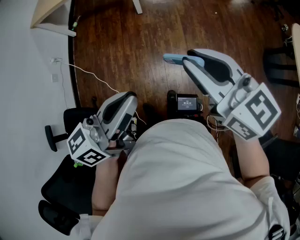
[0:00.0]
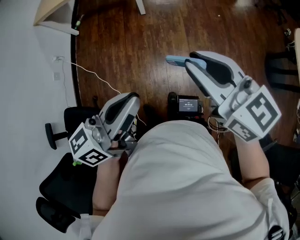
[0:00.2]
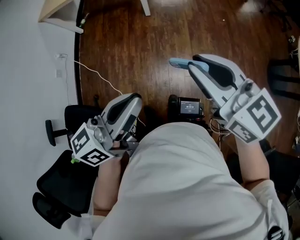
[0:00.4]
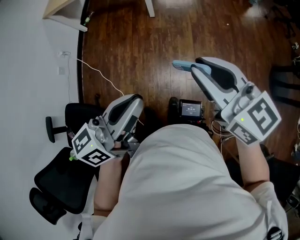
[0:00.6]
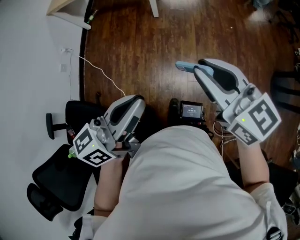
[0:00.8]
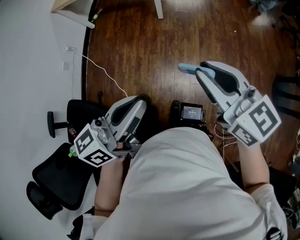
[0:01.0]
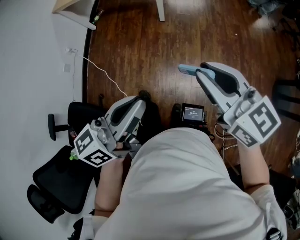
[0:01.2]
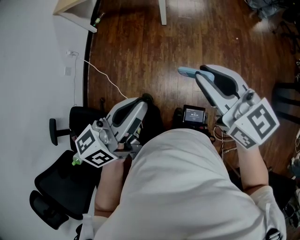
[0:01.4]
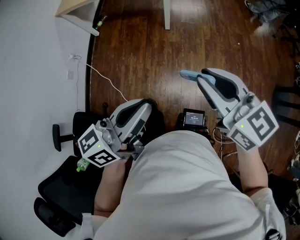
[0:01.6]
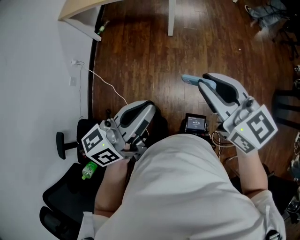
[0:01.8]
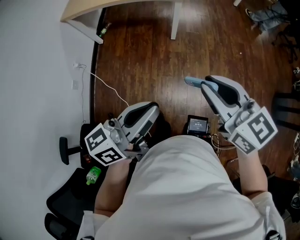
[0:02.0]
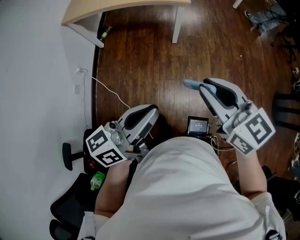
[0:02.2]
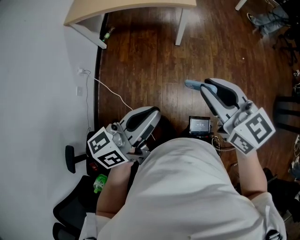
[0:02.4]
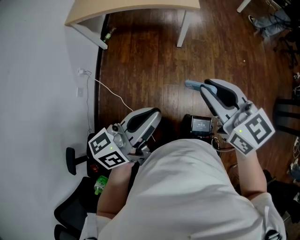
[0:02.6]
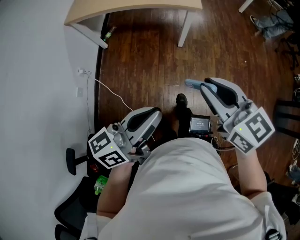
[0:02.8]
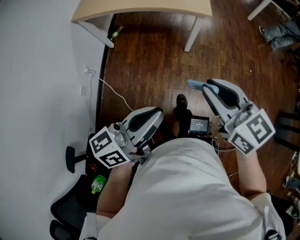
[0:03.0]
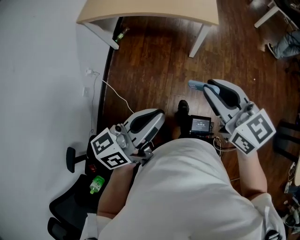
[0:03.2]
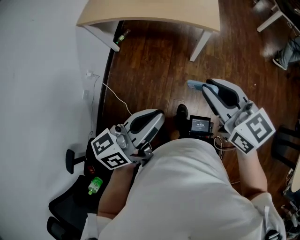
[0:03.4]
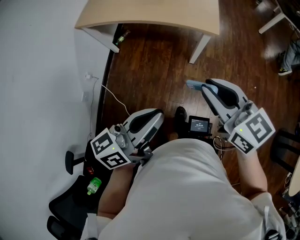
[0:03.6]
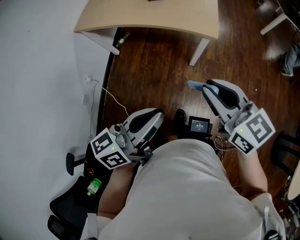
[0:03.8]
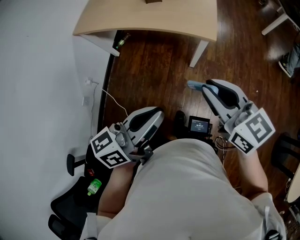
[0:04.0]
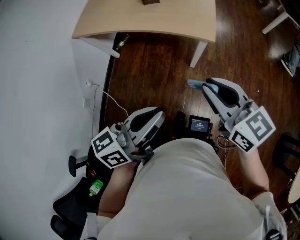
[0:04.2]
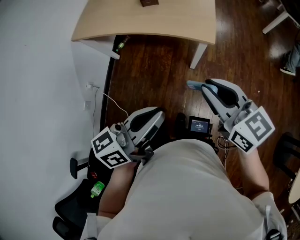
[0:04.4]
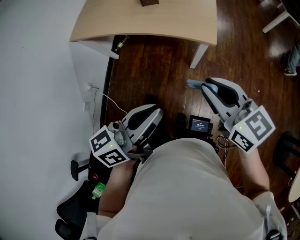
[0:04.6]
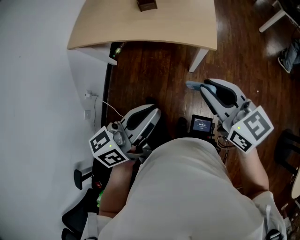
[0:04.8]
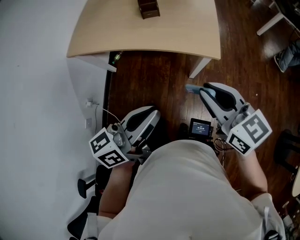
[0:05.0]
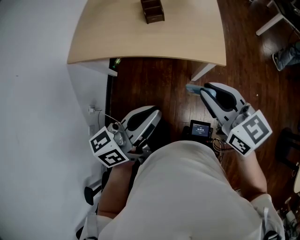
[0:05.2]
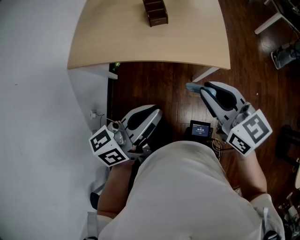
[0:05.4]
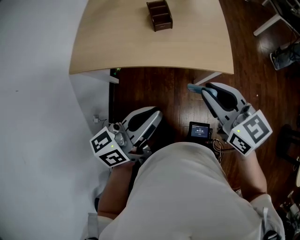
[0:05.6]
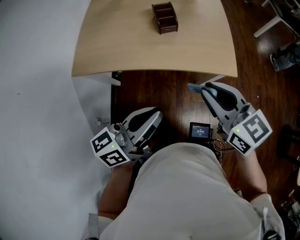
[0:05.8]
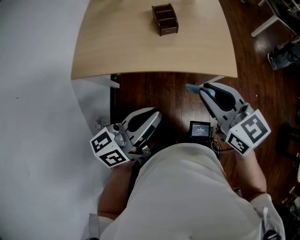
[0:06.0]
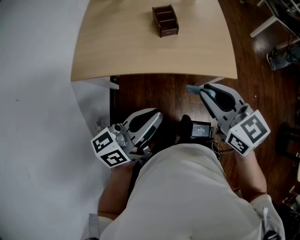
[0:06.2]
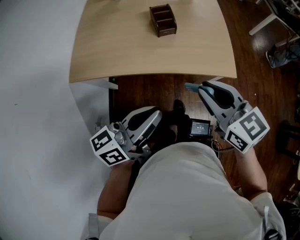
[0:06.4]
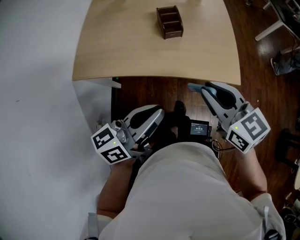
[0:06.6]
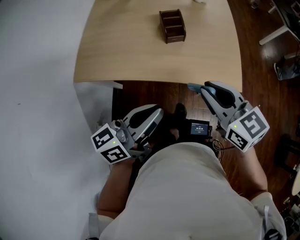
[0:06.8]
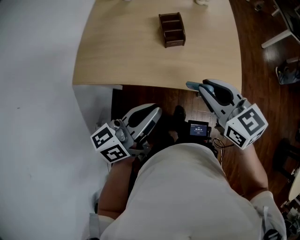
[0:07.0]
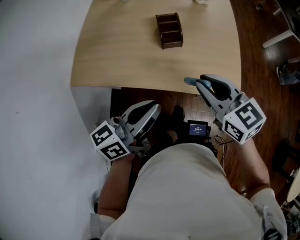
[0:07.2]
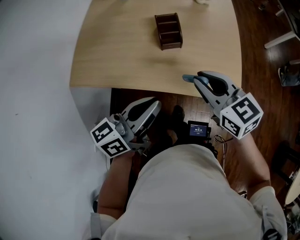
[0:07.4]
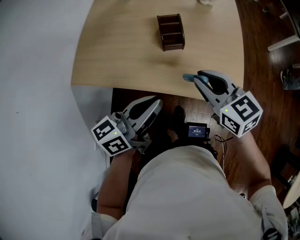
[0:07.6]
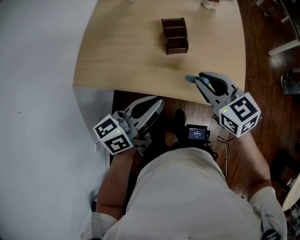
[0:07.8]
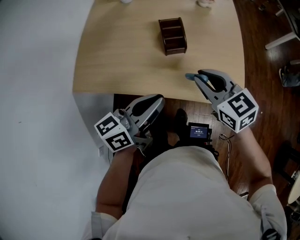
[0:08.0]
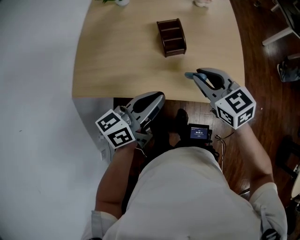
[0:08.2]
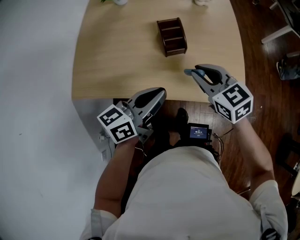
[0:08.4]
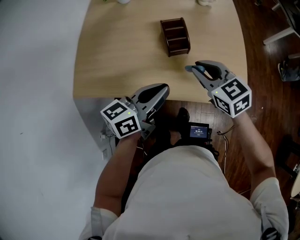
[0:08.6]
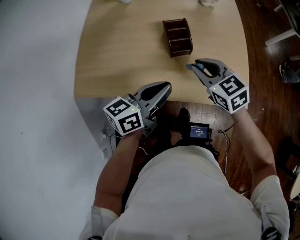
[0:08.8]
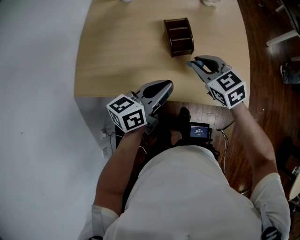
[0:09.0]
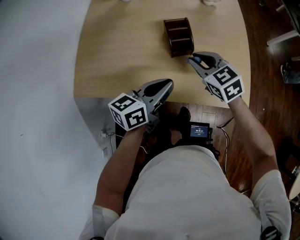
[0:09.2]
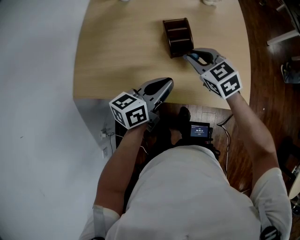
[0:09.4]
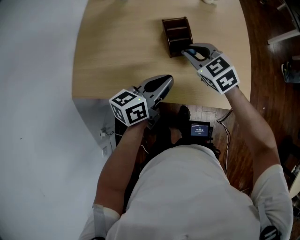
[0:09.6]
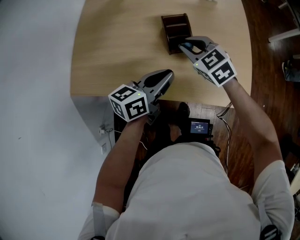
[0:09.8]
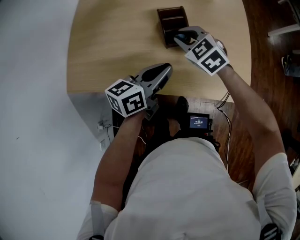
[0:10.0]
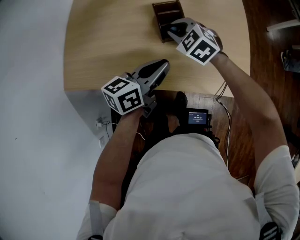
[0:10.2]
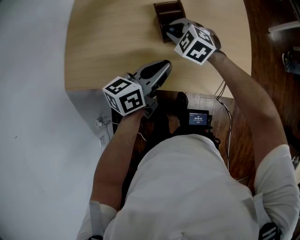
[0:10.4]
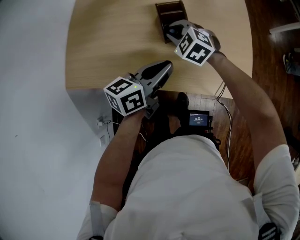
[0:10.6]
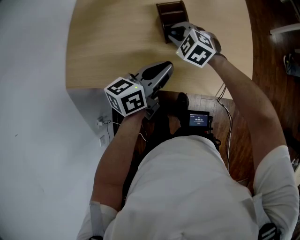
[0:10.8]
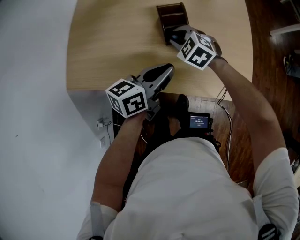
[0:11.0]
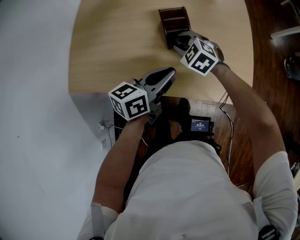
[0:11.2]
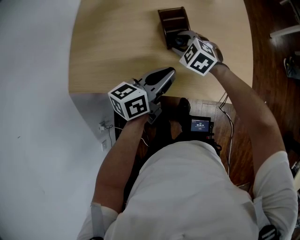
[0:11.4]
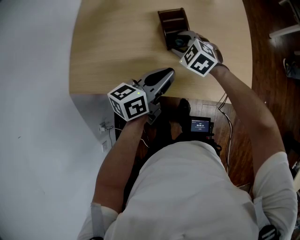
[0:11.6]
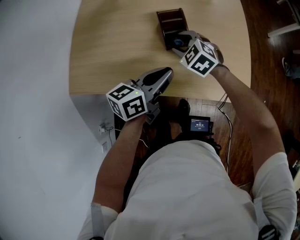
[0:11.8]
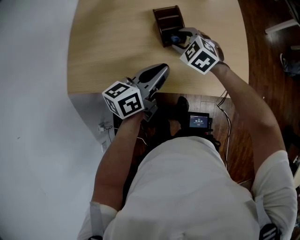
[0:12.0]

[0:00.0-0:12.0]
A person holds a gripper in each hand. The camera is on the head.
0:00.0 to 0:01.6: The two grippers go roughly 10 cm forward and to the left.
0:01.6 to 0:03.0: Both grippers travel together forward, to the left and downward, some 25 cm.
0:03.0 to 0:04.4: Both grippers travel together forward and to the right, approximately 20 cm.
0:04.4 to 0:06.0: The right gripper shifts by roughly 5 cm.
0:06.0 to 0:07.6: There are only small adjustments of the grippers.
0:07.6 to 0:09.0: Both grippers move forward, approximately 5 cm.
0:09.0 to 0:10.4: The right gripper heads to the left, forward and downward, covering approximately 10 cm, and swivels some 30 degrees.
0:10.4 to 0:12.0: The right gripper opens its fingers.

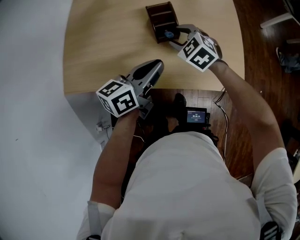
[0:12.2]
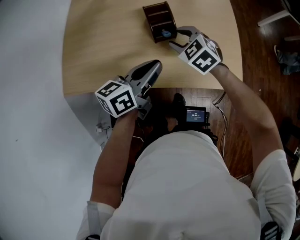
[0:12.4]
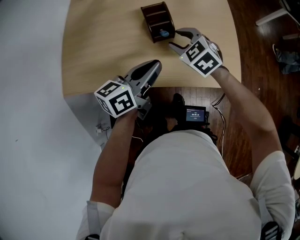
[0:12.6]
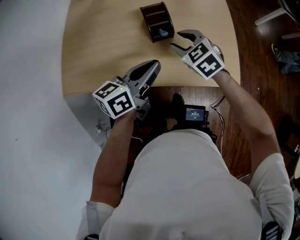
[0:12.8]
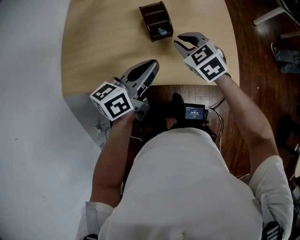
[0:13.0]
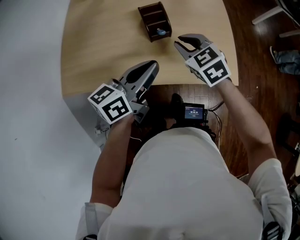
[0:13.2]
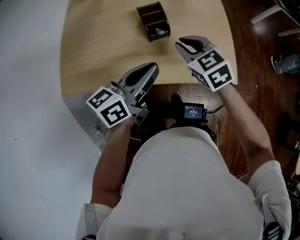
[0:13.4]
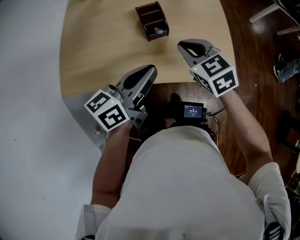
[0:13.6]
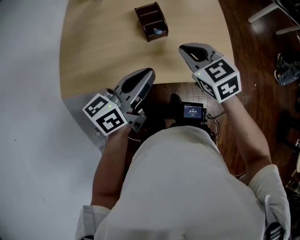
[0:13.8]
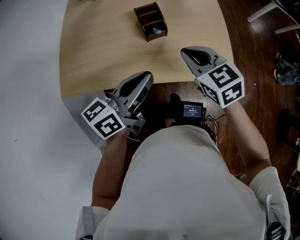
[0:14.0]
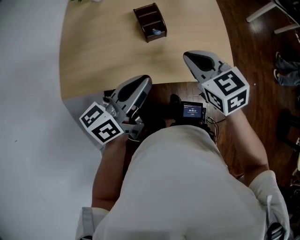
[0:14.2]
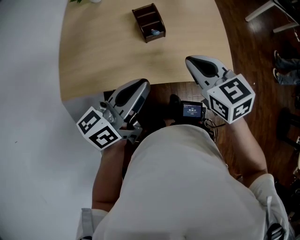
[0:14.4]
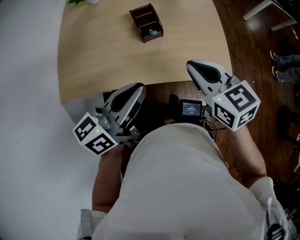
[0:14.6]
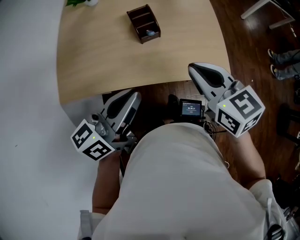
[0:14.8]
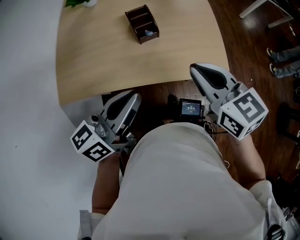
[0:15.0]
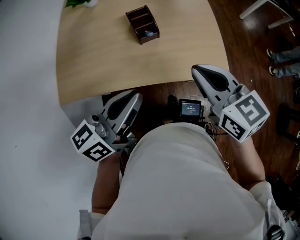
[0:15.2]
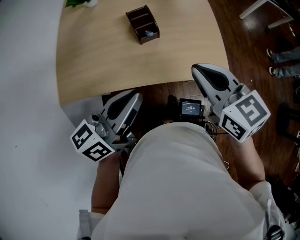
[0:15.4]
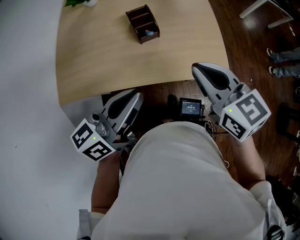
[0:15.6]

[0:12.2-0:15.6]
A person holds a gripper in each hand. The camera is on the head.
0:12.2 to 0:13.8: The left gripper shifts about 10 cm upward and backward; the right gripper goes some 15 cm upward, backward and to the right, turns by roughly 30 degrees, and closes up.
0:13.8 to 0:15.6: The left gripper shifts approximately 5 cm backward. The right gripper shifts approximately 10 cm upward and backward.

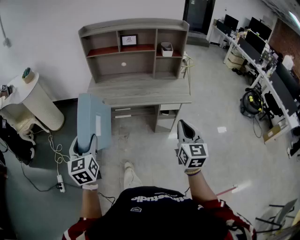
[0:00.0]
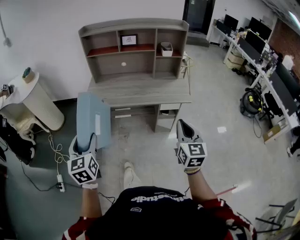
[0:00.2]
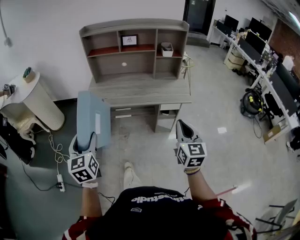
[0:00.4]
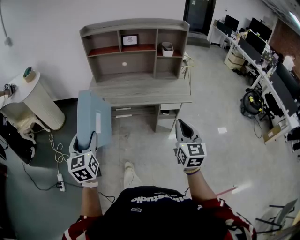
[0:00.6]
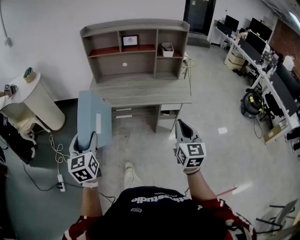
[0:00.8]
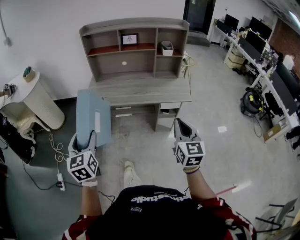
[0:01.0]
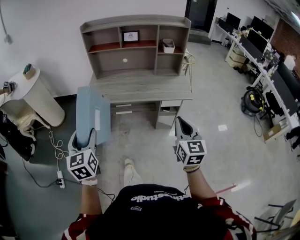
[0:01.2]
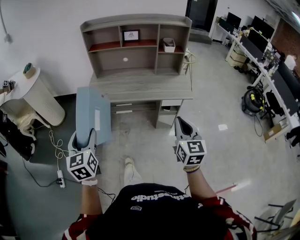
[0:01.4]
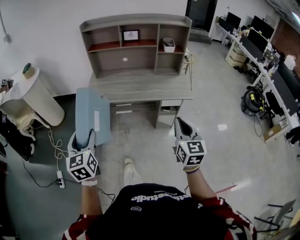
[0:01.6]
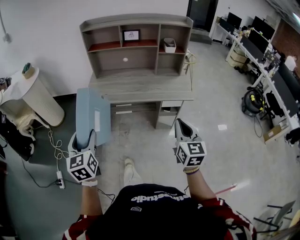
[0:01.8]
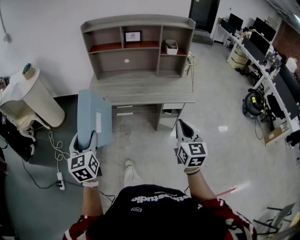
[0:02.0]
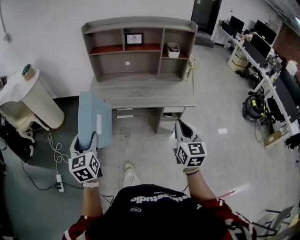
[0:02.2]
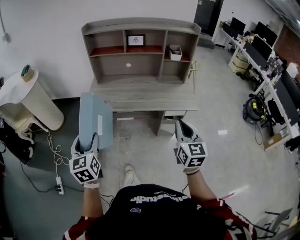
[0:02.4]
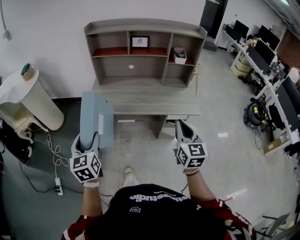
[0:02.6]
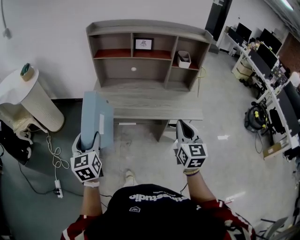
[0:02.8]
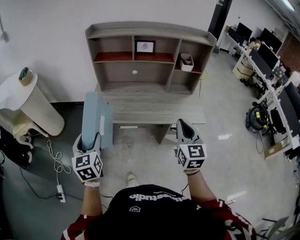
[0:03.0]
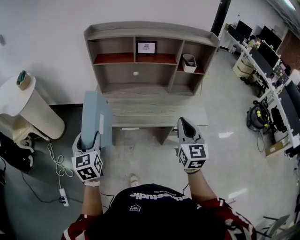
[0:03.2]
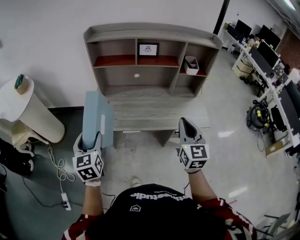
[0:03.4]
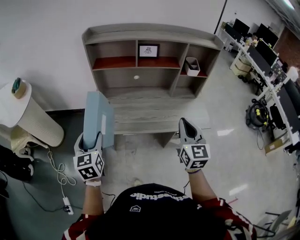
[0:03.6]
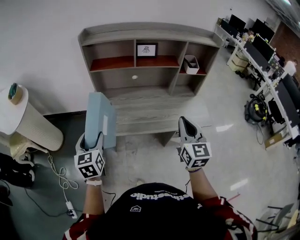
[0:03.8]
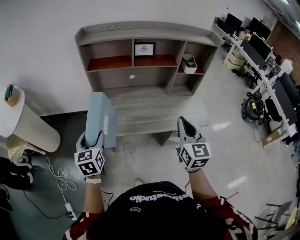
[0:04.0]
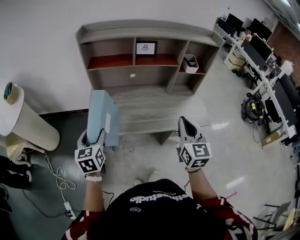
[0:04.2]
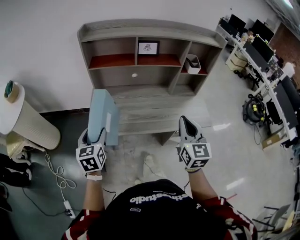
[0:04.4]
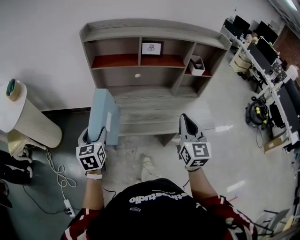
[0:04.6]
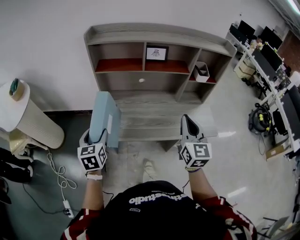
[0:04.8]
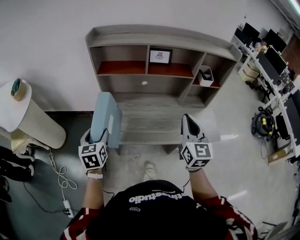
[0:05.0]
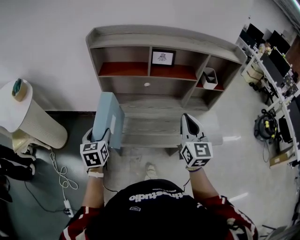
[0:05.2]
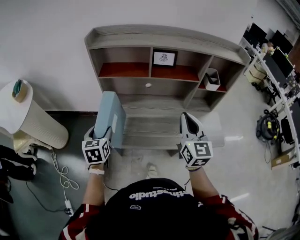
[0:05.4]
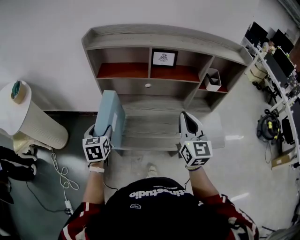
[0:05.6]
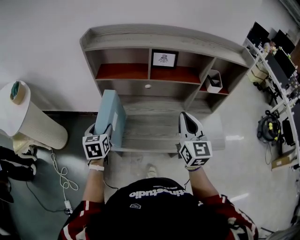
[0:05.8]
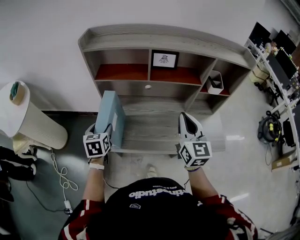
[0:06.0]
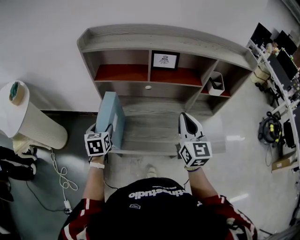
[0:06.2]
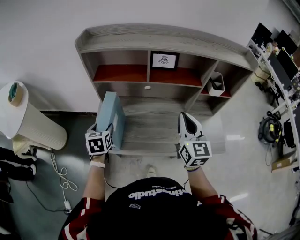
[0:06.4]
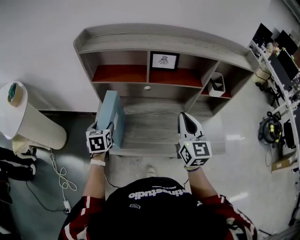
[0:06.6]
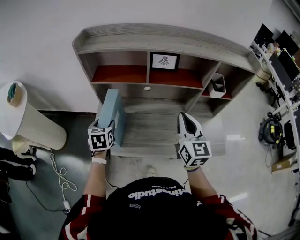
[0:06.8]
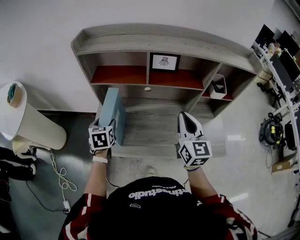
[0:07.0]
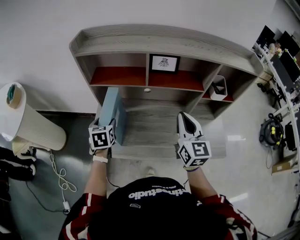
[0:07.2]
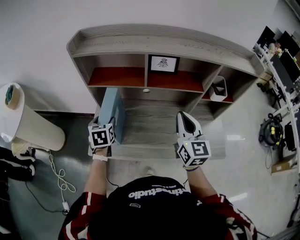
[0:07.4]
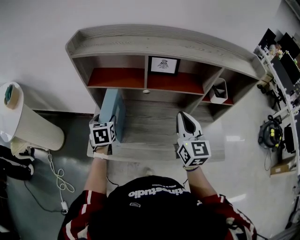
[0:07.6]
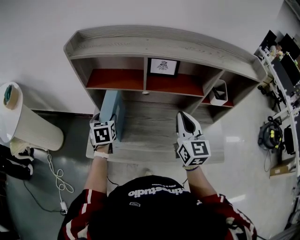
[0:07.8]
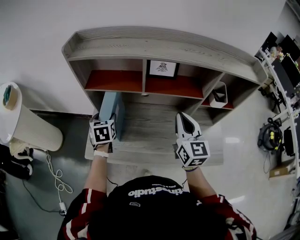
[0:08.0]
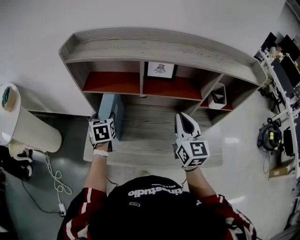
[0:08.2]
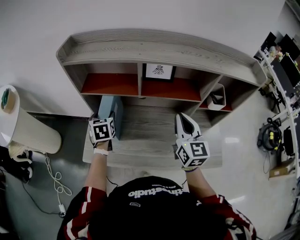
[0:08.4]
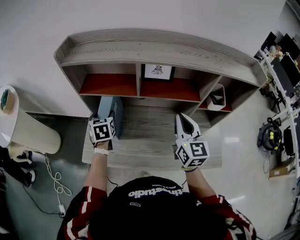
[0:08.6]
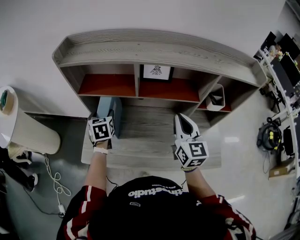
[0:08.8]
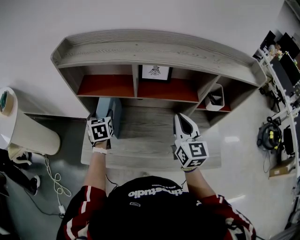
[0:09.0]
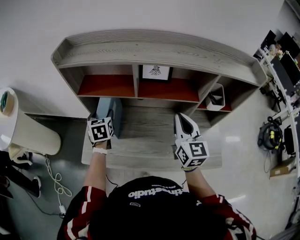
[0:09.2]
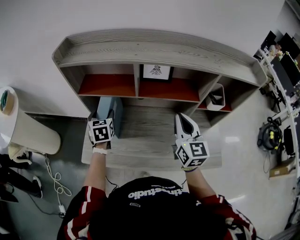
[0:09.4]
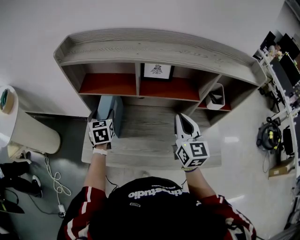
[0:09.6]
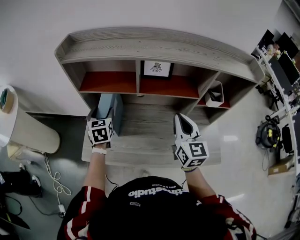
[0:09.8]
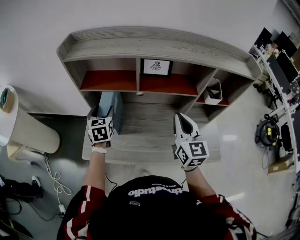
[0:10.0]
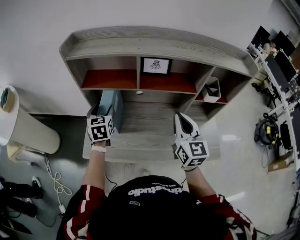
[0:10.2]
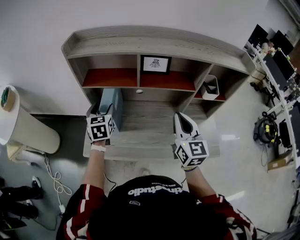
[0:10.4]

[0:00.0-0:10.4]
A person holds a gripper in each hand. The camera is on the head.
0:00.0 to 0:01.4: The grippers move only a little.
0:01.4 to 0:03.0: The grippers both shift forward by roughly 20 cm.
0:03.0 to 0:04.4: The right gripper goes some 15 cm forward and to the left, while the left gripper travels forward by some 15 cm.
0:04.4 to 0:06.0: The two grippers go some 15 cm forward.
0:06.0 to 0:07.4: Both grippers move forward, some 10 cm.
0:07.4 to 0:09.0: The left gripper shifts some 10 cm forward, while the right gripper moves forward, roughly 5 cm.
0:09.0 to 0:10.4: The left gripper travels upward by about 5 cm; the right gripper shifts some 5 cm backward.
